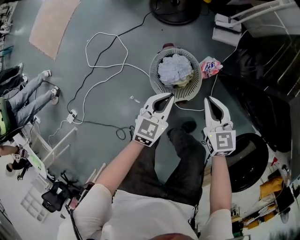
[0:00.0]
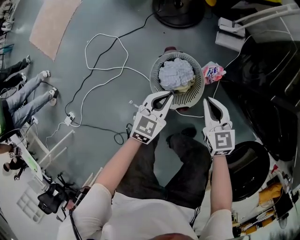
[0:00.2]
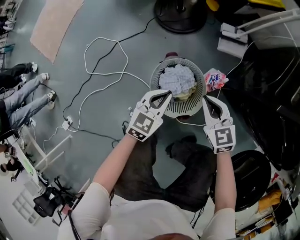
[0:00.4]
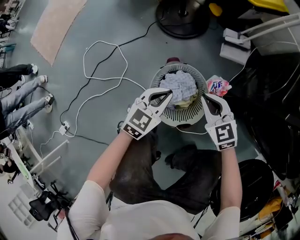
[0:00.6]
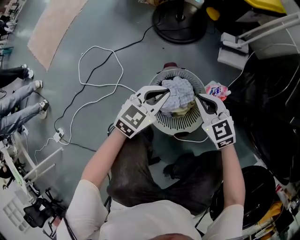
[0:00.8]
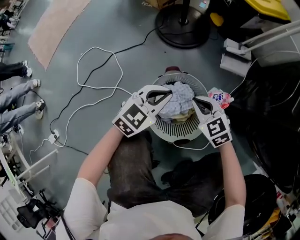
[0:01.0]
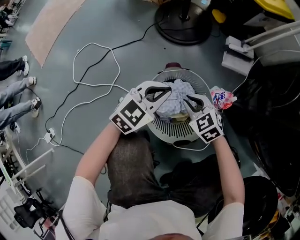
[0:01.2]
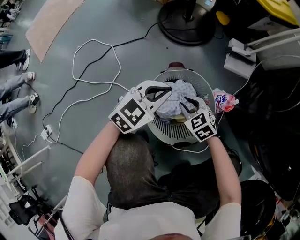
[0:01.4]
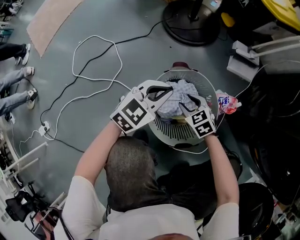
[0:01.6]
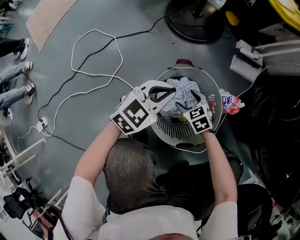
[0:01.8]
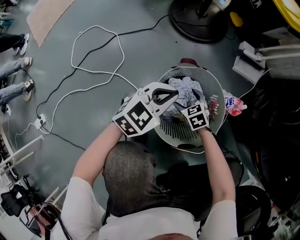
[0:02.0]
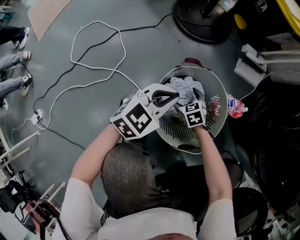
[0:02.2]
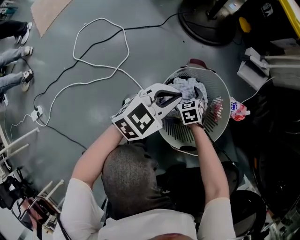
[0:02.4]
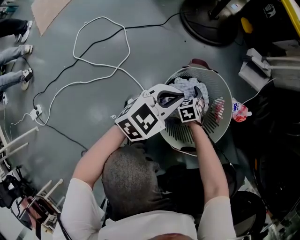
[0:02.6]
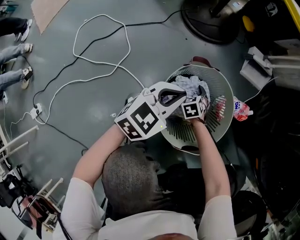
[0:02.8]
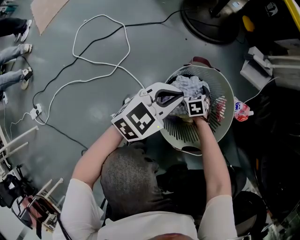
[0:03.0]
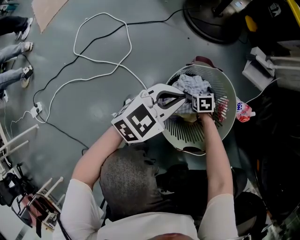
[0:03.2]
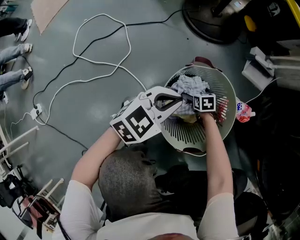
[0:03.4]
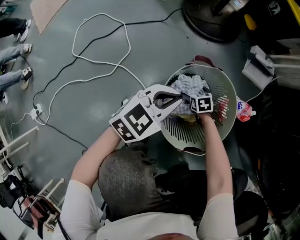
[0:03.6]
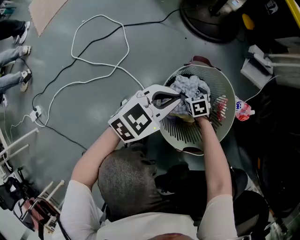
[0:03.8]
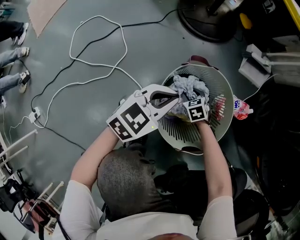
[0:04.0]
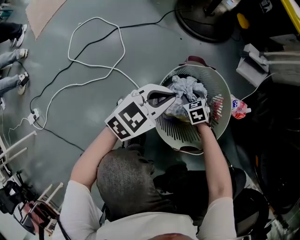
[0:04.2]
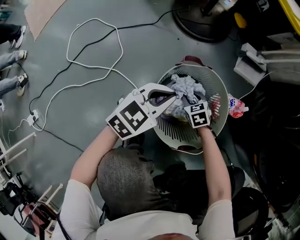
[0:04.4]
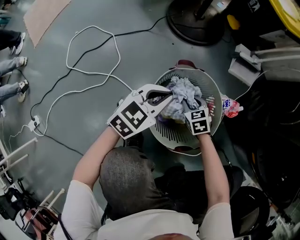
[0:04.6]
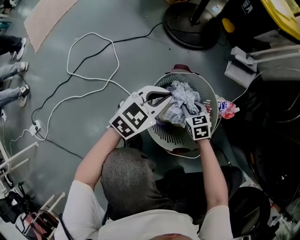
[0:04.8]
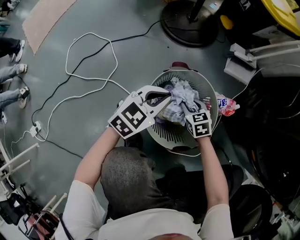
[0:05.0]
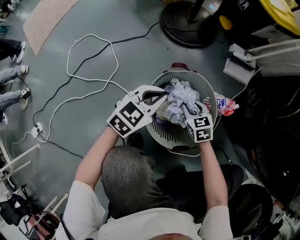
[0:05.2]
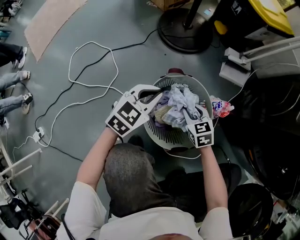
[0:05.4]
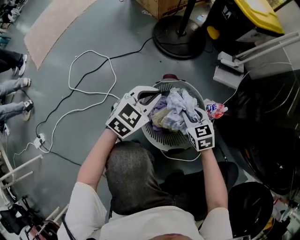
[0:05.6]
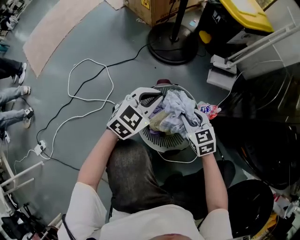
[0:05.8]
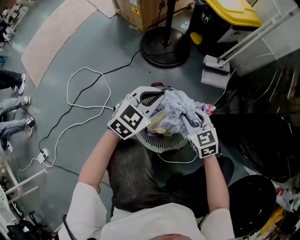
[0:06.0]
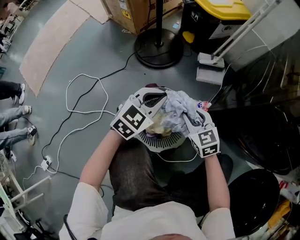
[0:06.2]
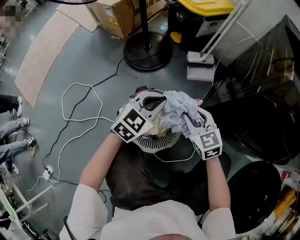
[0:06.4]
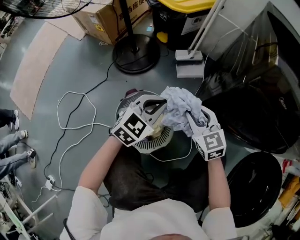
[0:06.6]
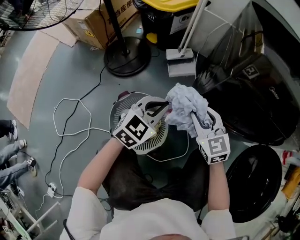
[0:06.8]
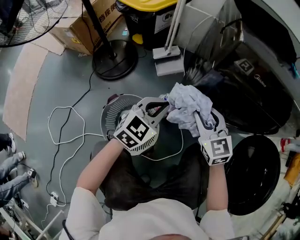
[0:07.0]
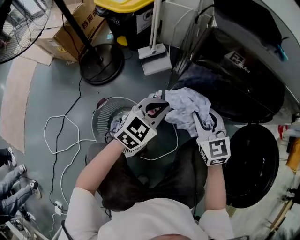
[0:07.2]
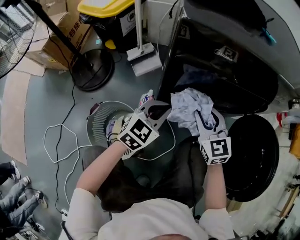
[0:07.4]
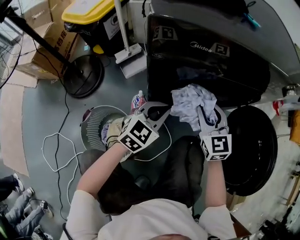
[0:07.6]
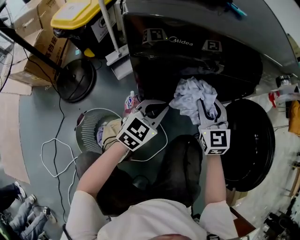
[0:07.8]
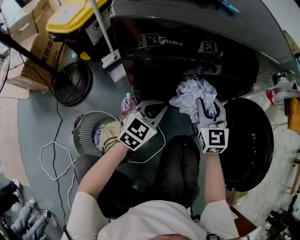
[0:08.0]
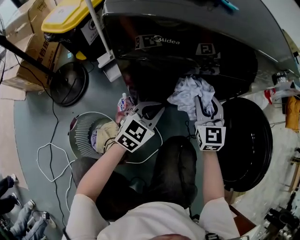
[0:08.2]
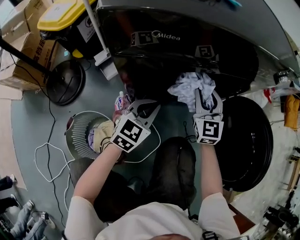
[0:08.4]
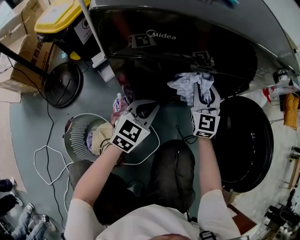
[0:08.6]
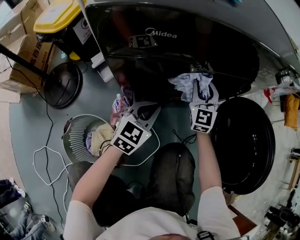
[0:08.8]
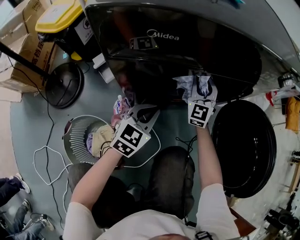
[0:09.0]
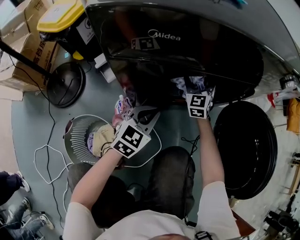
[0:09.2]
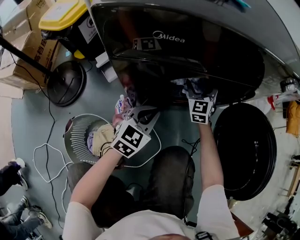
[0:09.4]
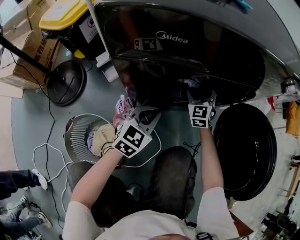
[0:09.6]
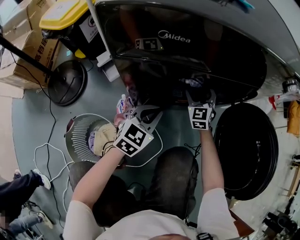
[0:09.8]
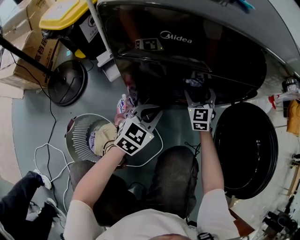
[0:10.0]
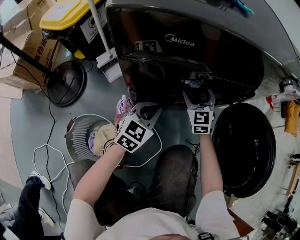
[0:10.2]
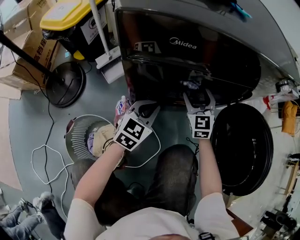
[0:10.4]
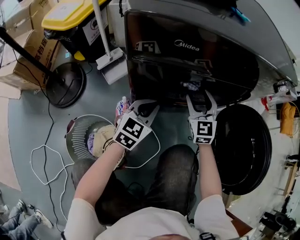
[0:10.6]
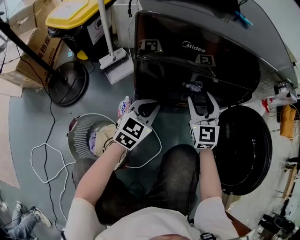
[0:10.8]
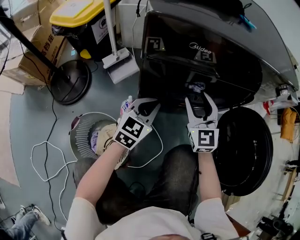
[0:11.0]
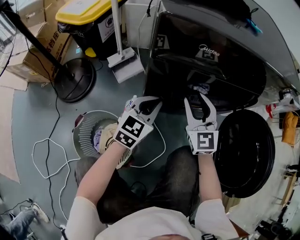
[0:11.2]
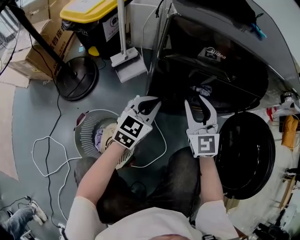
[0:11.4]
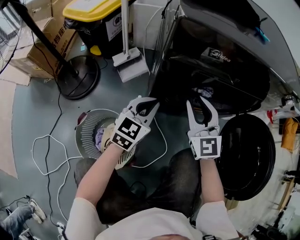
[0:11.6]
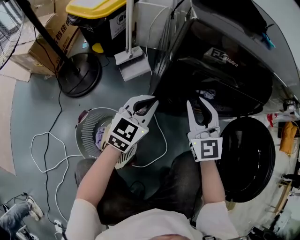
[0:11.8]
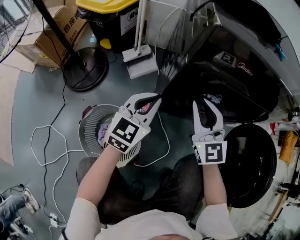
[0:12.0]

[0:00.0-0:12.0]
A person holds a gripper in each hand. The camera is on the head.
0.0 to 1.6 s: The left gripper shifts some 25 cm downward and forward, and turns by roughly 20 degrees; the right gripper moves downward, roughly 40 cm, and changes its angle by some 40 degrees.
1.6 to 3.0 s: The right gripper moves downward, roughly 15 cm, turns by some 20 degrees, and opens up.
3.0 to 4.4 s: The right gripper heads upward, covering approximately 5 cm, and closes its fingers.
4.4 to 6.0 s: The left gripper heads upward and forward, covering some 15 cm, while the right gripper moves upward, about 30 cm, and turns by about 30 degrees.
6.0 to 7.6 s: The left gripper moves roughly 35 cm, and changes its angle by roughly 40 degrees; the right gripper ends up approximately 40 cm from where it was, and turns by approximately 50 degrees.
7.6 to 9.0 s: The right gripper shifts approximately 15 cm forward, and rotates approximately 30 degrees. Meanwhile the left gripper changes place by some 10 cm.
9.0 to 10.4 s: The right gripper is displaced backward by approximately 5 cm, and reaches approximately 10 cm downward, then returns.
10.4 to 12.0 s: The left gripper goes approximately 15 cm to the left and upward. The right gripper shifts some 20 cm to the left, upward and backward, changes its angle by approximately 20 degrees, and closes its fingers.

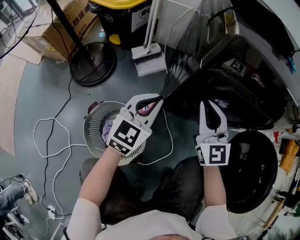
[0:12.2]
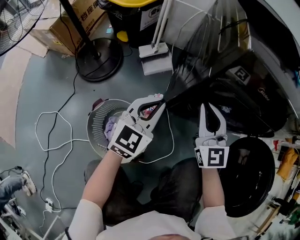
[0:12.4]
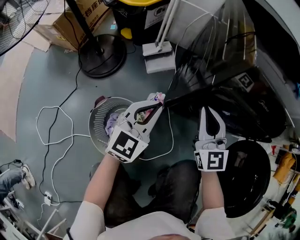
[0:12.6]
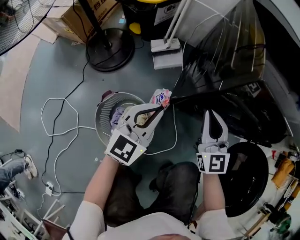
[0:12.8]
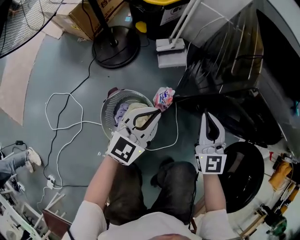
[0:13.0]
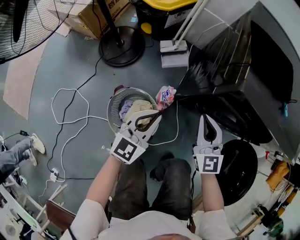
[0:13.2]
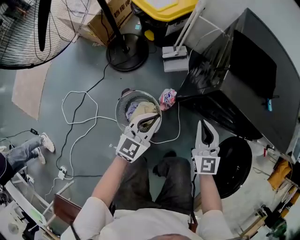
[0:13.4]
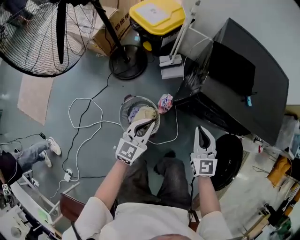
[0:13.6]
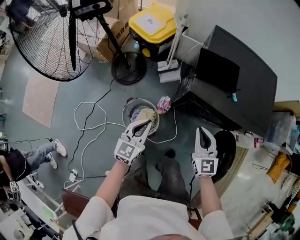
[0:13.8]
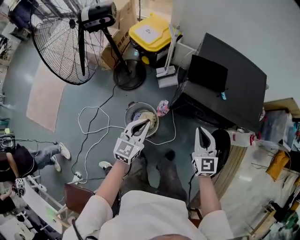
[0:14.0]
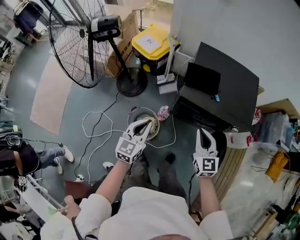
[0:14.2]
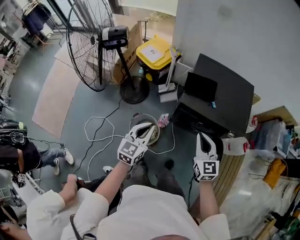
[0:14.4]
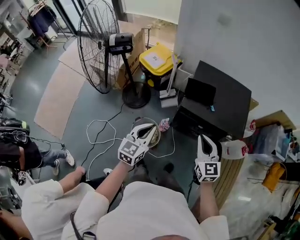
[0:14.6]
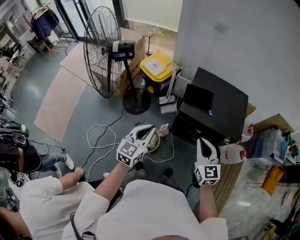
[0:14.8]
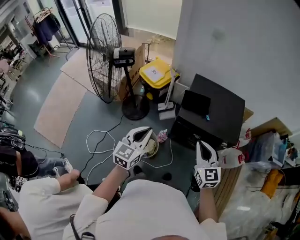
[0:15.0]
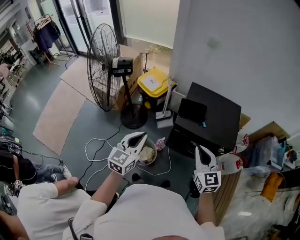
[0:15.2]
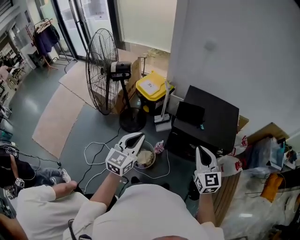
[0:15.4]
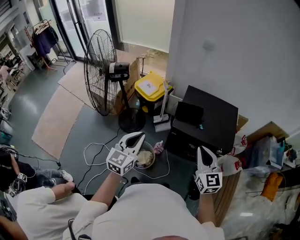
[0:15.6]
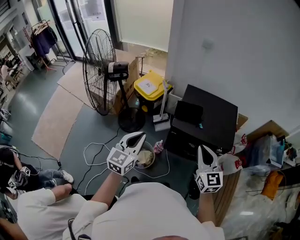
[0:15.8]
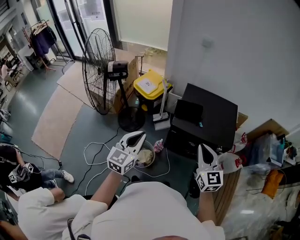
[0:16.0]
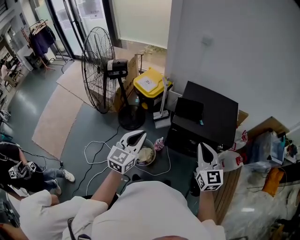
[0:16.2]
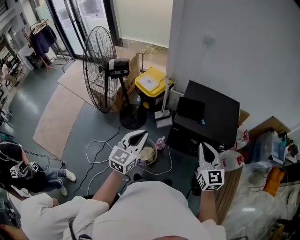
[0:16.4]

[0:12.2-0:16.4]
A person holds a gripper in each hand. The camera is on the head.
12.2 to 13.6 s: The right gripper moves upward, some 20 cm, while the left gripper goes approximately 25 cm upward and backward.
13.6 to 15.0 s: The grippers both shift upward by some 40 cm.
15.0 to 16.4 s: The grippers move only a little.

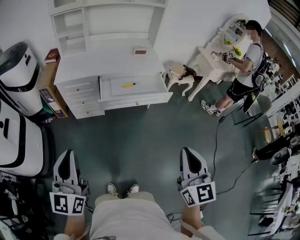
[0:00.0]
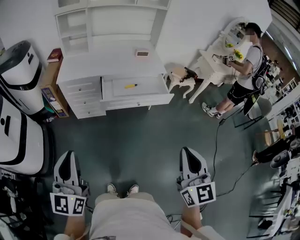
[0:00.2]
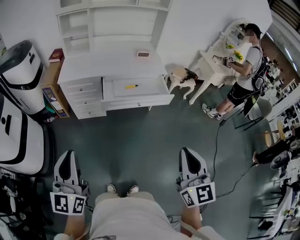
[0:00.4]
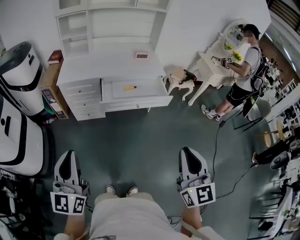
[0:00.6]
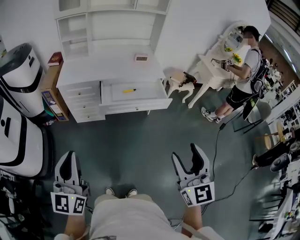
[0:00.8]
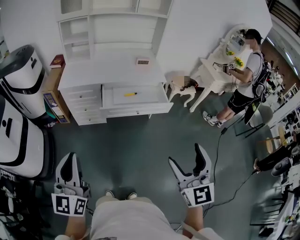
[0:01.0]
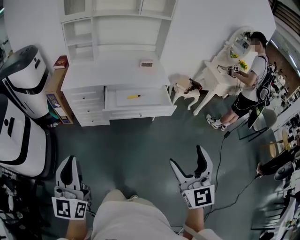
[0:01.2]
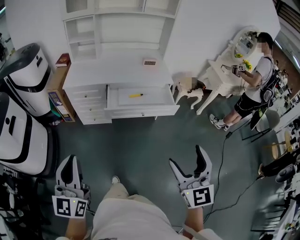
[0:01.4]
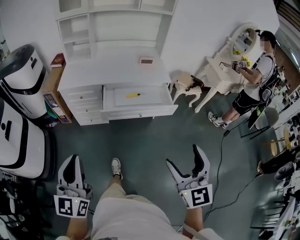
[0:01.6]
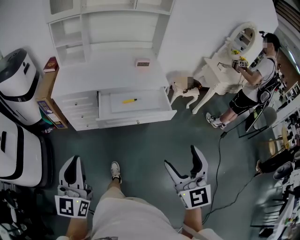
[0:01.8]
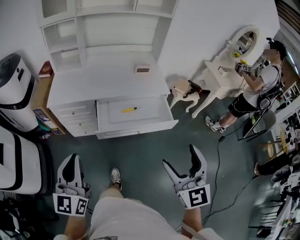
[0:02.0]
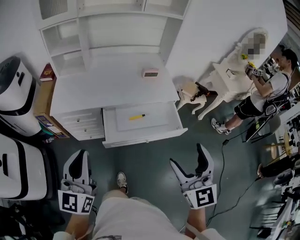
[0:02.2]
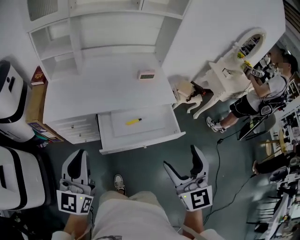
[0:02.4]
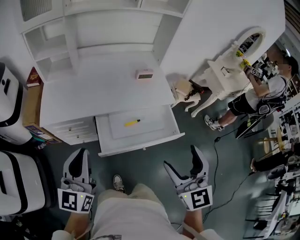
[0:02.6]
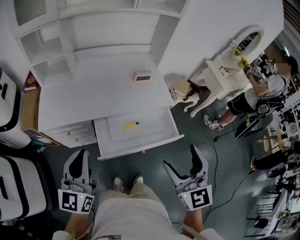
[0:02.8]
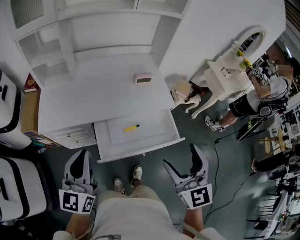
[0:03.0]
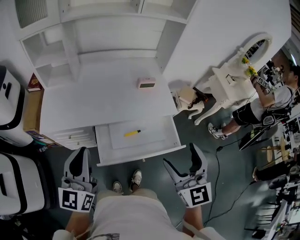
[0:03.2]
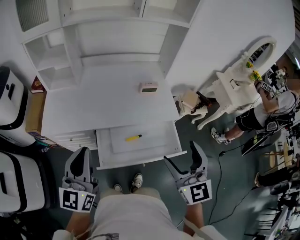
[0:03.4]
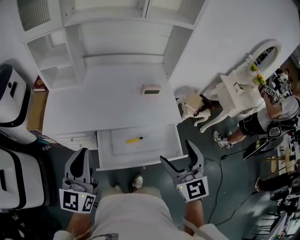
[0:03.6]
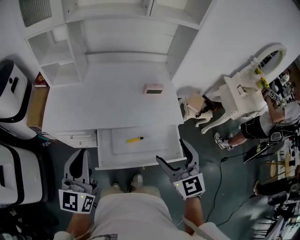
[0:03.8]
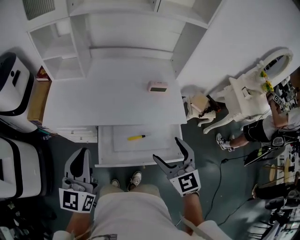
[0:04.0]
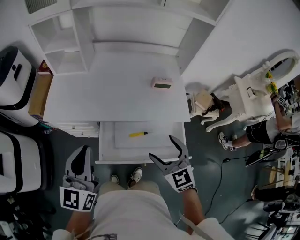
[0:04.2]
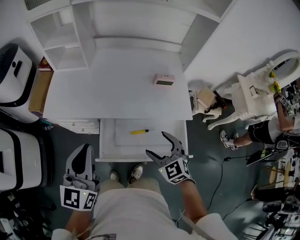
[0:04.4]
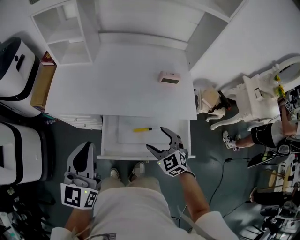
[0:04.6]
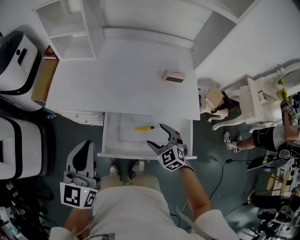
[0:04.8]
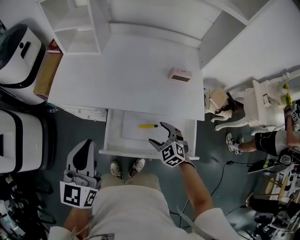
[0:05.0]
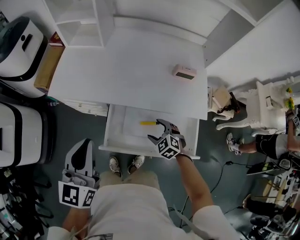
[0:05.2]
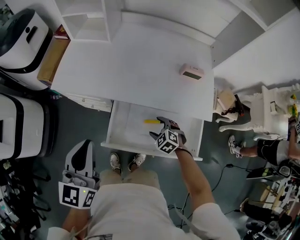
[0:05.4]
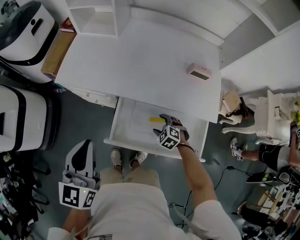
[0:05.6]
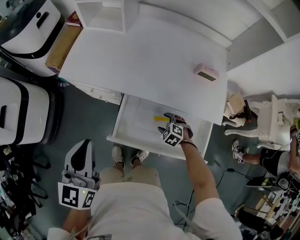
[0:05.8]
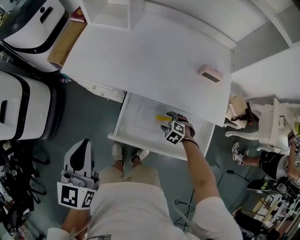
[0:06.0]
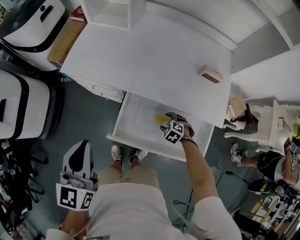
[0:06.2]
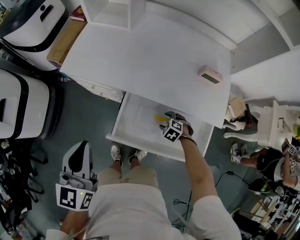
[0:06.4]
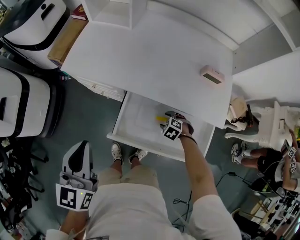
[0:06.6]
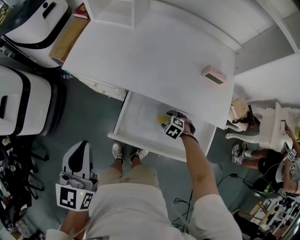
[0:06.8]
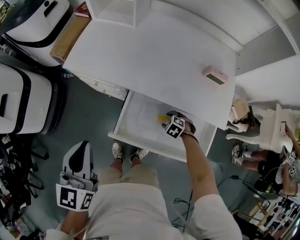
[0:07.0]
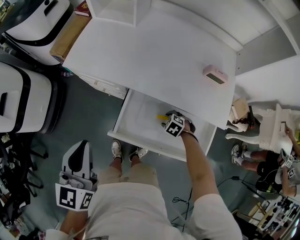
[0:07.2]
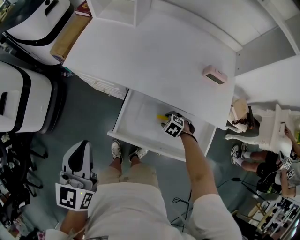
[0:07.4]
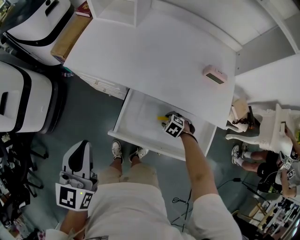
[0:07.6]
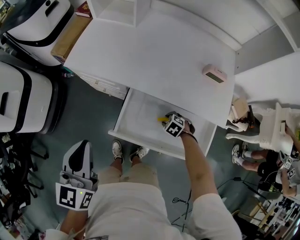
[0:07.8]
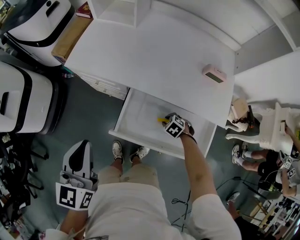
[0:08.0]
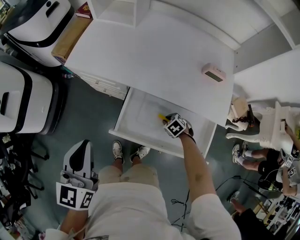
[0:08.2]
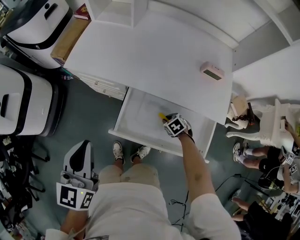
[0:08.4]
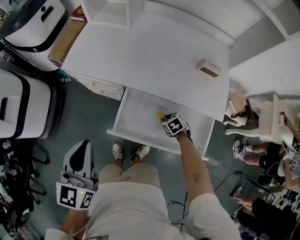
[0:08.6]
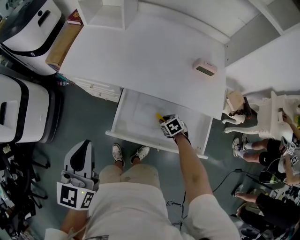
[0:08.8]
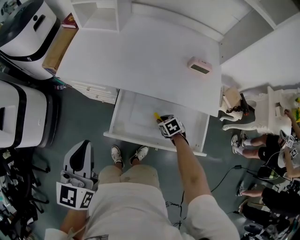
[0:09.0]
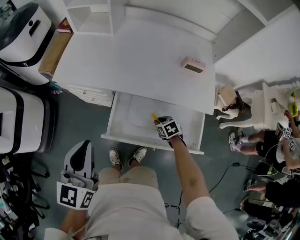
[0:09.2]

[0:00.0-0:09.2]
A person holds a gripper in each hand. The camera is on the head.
0.0 to 1.6 s: The left gripper moves about 5 cm. Meanwhile the right gripper heads forward, covering about 5 cm, and opens its fingers.
1.6 to 3.0 s: The grippers both shift forward by about 40 cm.
3.0 to 4.6 s: The left gripper heads forward, covering roughly 5 cm. Meanwhile the right gripper travels downward and forward by some 30 cm, and swivels about 40 degrees.
4.6 to 6.2 s: The left gripper moves to the left and downward, about 10 cm. Meanwhile the right gripper travels downward by some 25 cm, and tilts its fingers about 40 degrees downward.
6.2 to 7.6 s: The grippers stay close to where they were, moving slightly.
7.6 to 9.2 s: The right gripper shifts by roughly 5 cm, and rotates some 40 degrees.
